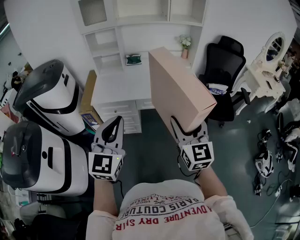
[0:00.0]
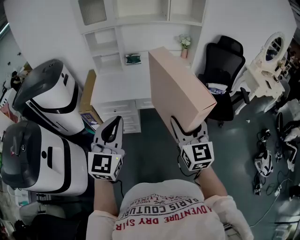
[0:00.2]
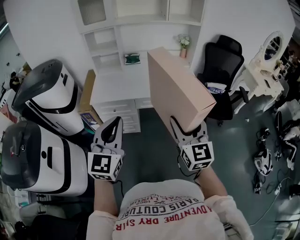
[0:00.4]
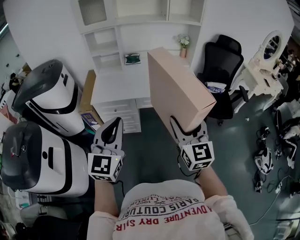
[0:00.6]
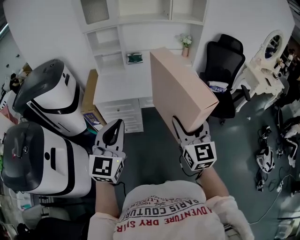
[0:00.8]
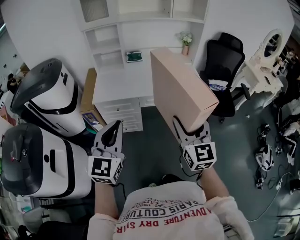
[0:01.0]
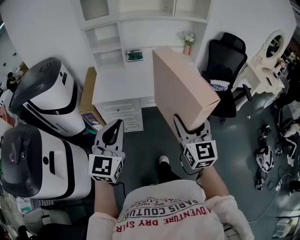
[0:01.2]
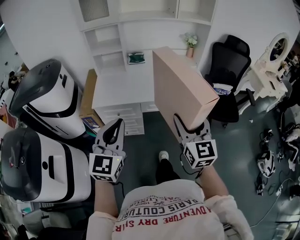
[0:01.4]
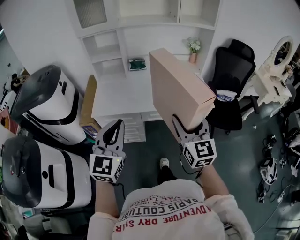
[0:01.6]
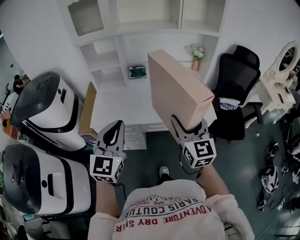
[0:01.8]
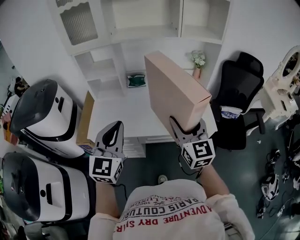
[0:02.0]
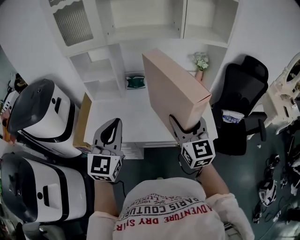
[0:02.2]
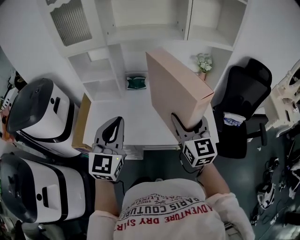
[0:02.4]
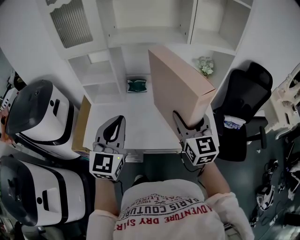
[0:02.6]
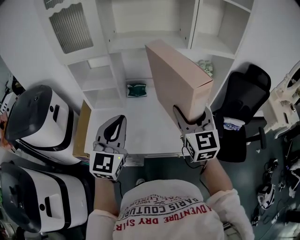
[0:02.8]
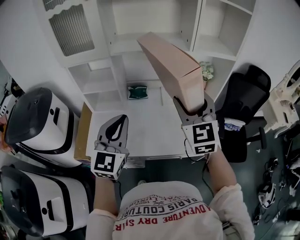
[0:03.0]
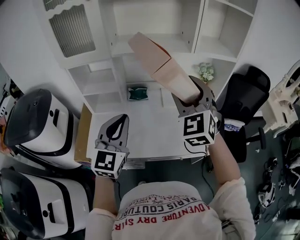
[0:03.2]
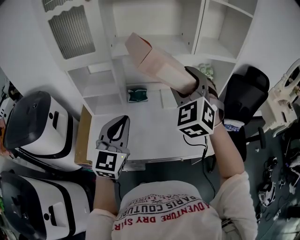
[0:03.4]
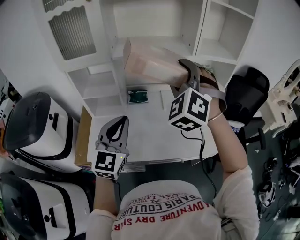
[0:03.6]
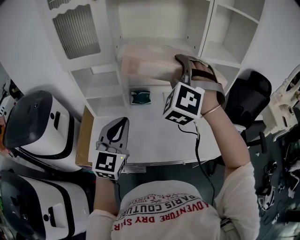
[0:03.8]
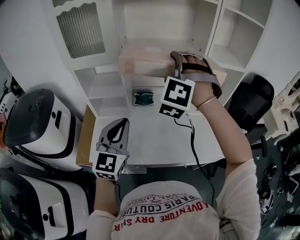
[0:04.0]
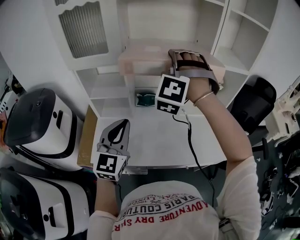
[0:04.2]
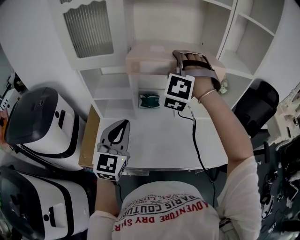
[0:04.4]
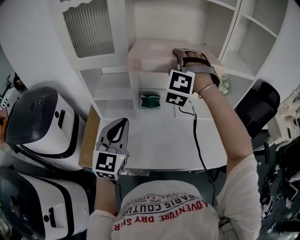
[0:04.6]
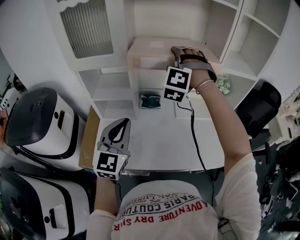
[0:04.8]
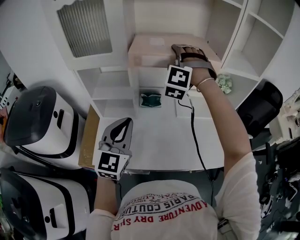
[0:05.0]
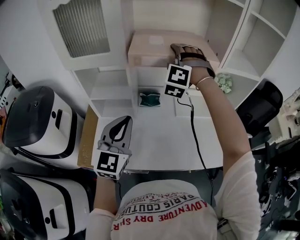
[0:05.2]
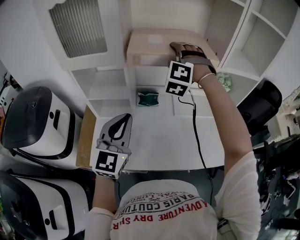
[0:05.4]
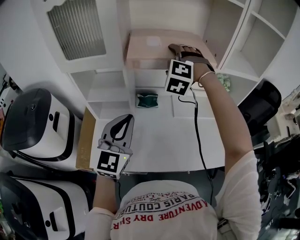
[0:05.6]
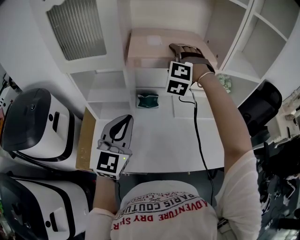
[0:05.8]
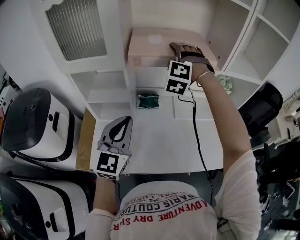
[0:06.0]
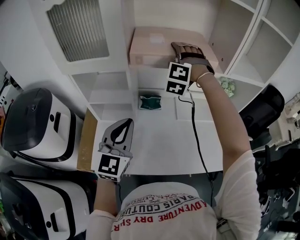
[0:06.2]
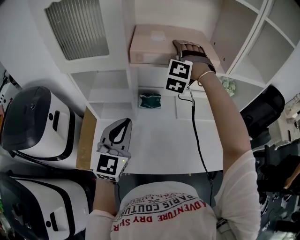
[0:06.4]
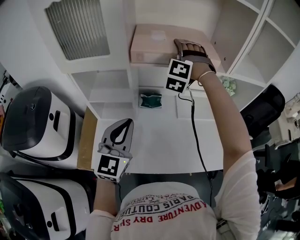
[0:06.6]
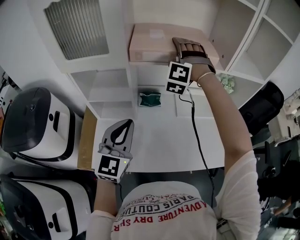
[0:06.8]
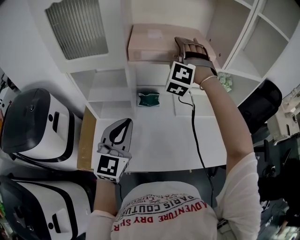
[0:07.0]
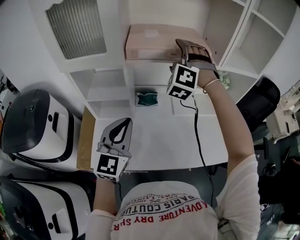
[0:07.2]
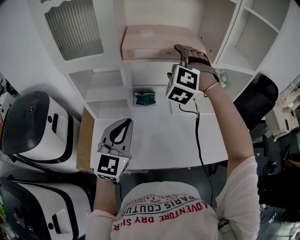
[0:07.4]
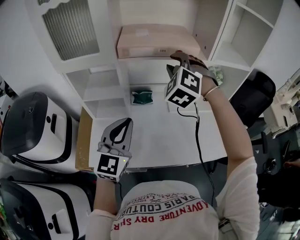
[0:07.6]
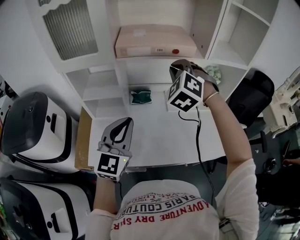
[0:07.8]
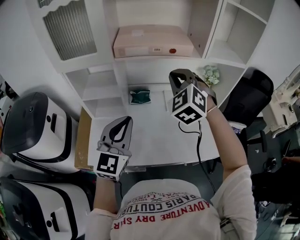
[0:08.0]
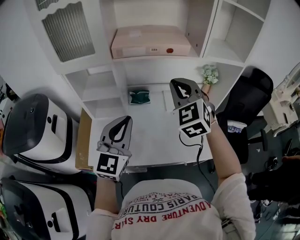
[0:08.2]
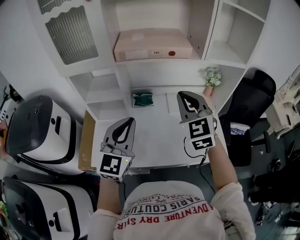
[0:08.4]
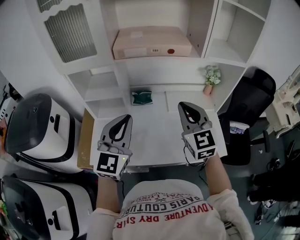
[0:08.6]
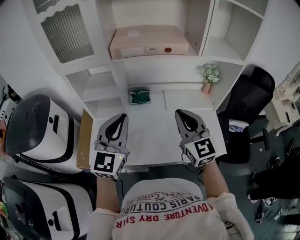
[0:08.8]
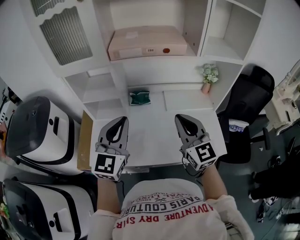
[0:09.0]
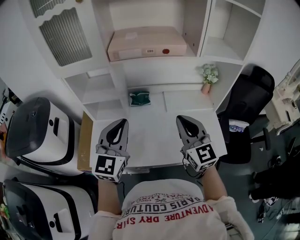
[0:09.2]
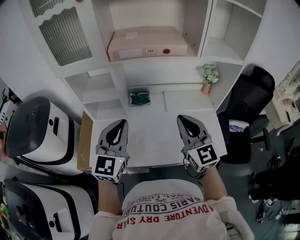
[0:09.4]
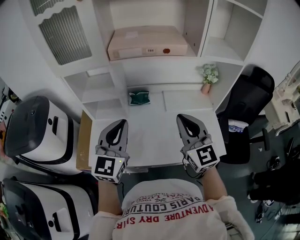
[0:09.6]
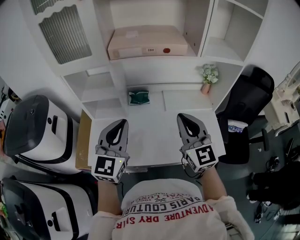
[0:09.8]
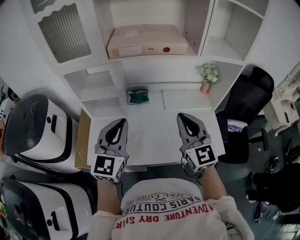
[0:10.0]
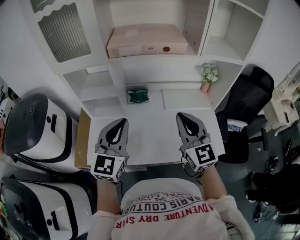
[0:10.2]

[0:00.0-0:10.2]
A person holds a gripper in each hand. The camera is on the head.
0:00.0 to 0:01.4: Both grippers move forward, roughly 5 cm.
0:01.4 to 0:03.0: Both grippers move forward, about 35 cm.
0:03.0 to 0:04.4: The right gripper travels forward and to the left by roughly 20 cm, and twists roughly 60 degrees counterclockwise, seen from behind, while the left gripper shifts roughly 10 cm to the left.
0:04.4 to 0:05.8: The right gripper moves forward and downward, approximately 10 cm, while the left gripper is displaced forward by about 5 cm.
0:05.8 to 0:07.2: The grippers move only a little.
0:07.2 to 0:08.8: The right gripper heads backward and to the right, covering about 25 cm, twists about 70 degrees clockwise, seen from behind, and closes up. The left gripper moves some 5 cm.
0:08.8 to 0:10.2: The grippers make only small movements.

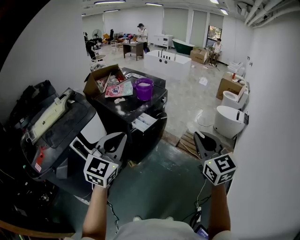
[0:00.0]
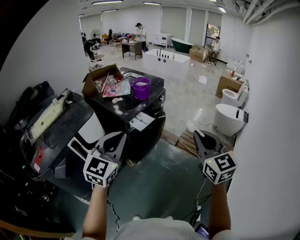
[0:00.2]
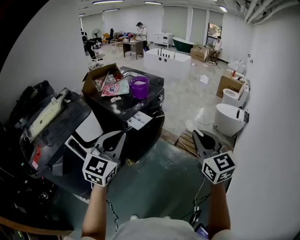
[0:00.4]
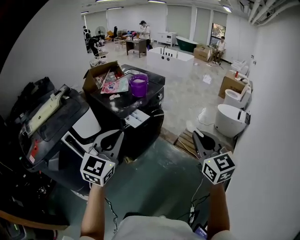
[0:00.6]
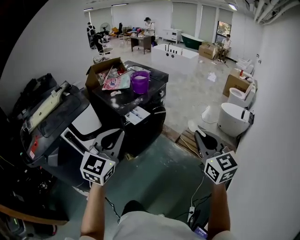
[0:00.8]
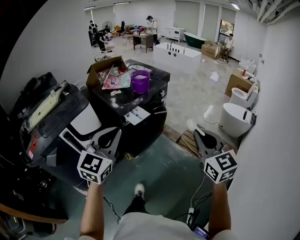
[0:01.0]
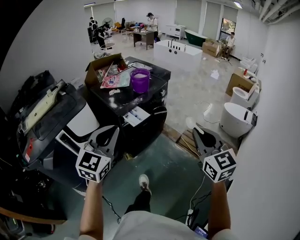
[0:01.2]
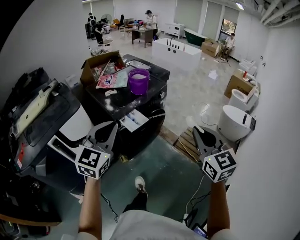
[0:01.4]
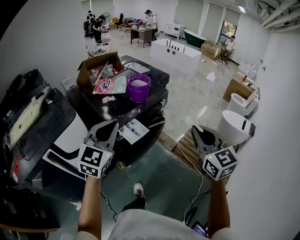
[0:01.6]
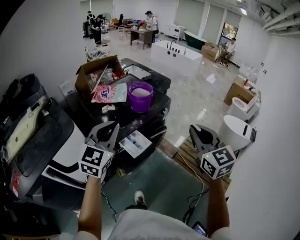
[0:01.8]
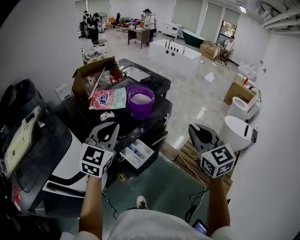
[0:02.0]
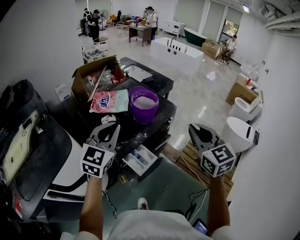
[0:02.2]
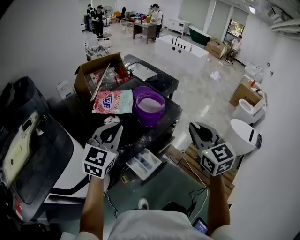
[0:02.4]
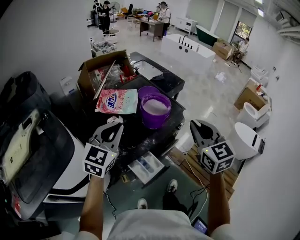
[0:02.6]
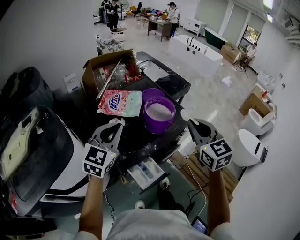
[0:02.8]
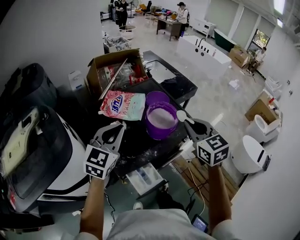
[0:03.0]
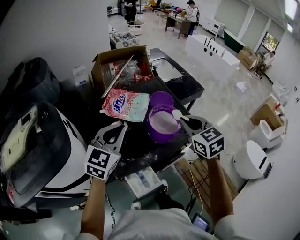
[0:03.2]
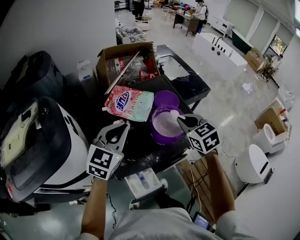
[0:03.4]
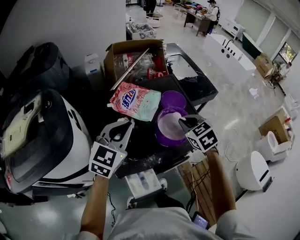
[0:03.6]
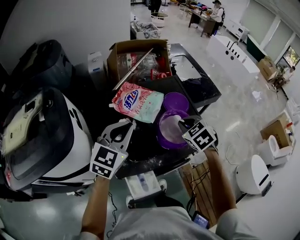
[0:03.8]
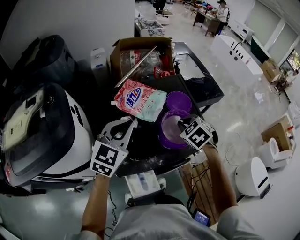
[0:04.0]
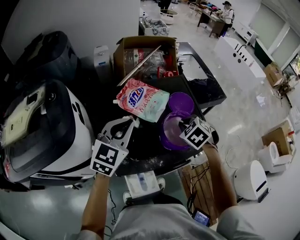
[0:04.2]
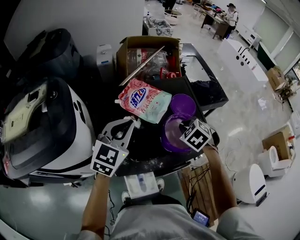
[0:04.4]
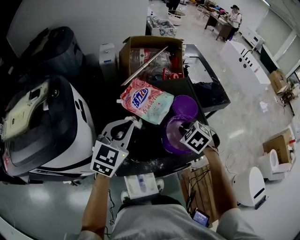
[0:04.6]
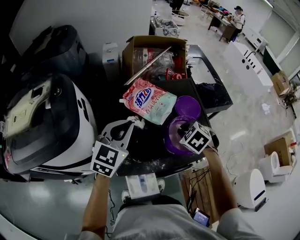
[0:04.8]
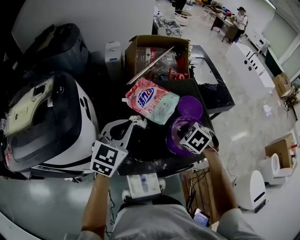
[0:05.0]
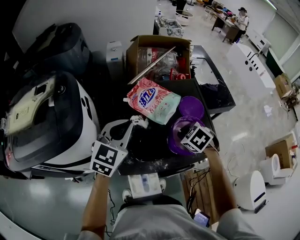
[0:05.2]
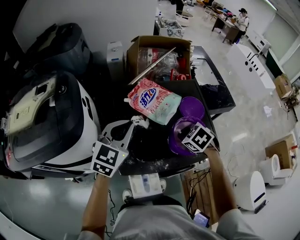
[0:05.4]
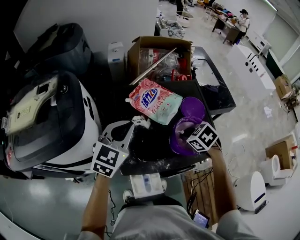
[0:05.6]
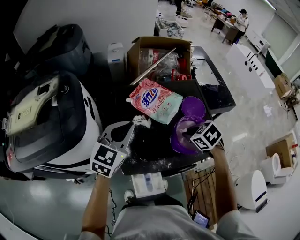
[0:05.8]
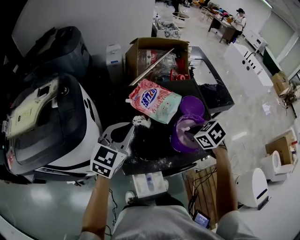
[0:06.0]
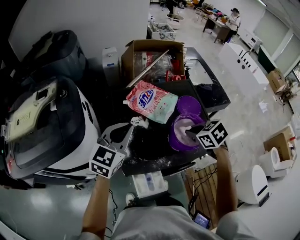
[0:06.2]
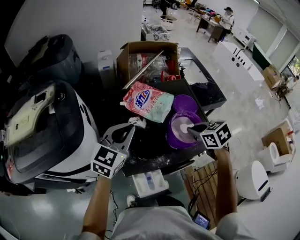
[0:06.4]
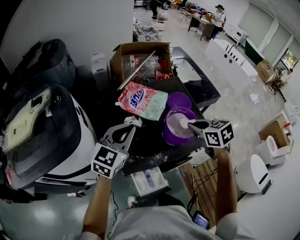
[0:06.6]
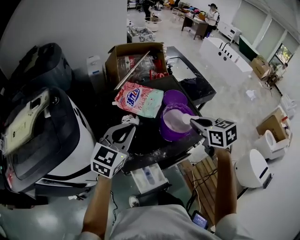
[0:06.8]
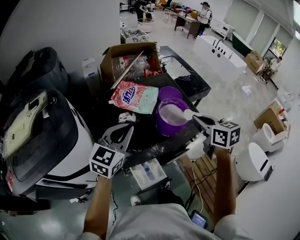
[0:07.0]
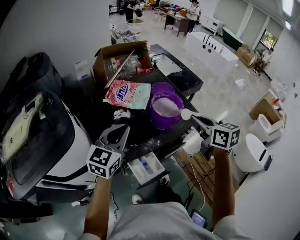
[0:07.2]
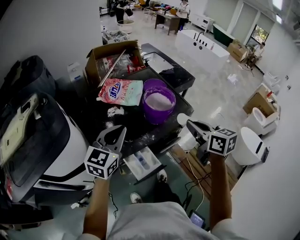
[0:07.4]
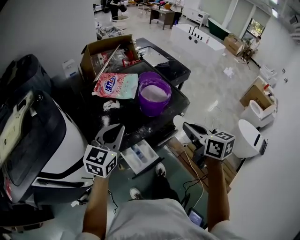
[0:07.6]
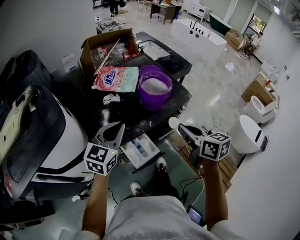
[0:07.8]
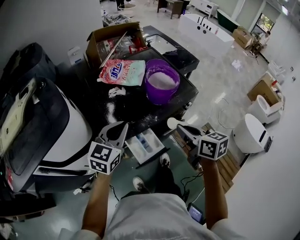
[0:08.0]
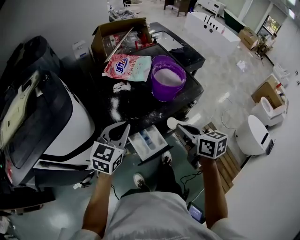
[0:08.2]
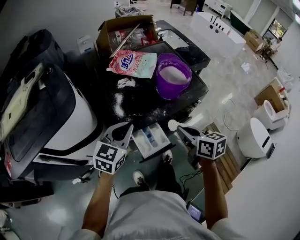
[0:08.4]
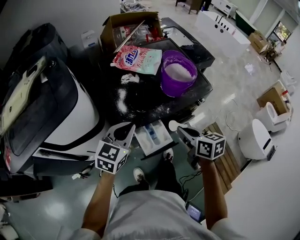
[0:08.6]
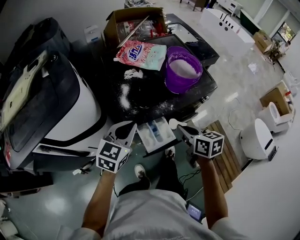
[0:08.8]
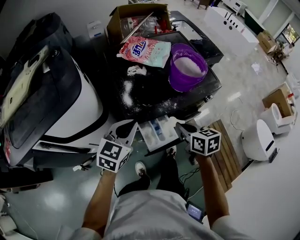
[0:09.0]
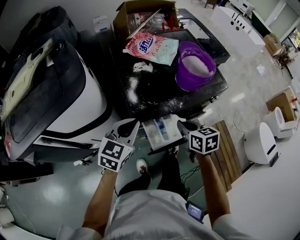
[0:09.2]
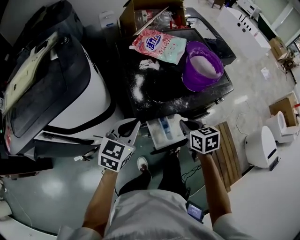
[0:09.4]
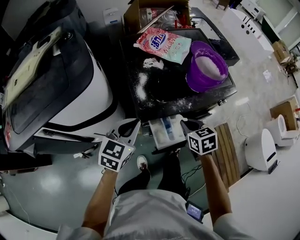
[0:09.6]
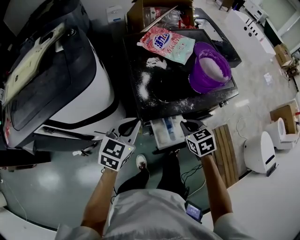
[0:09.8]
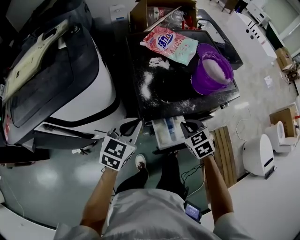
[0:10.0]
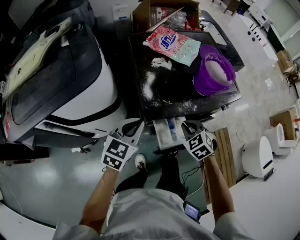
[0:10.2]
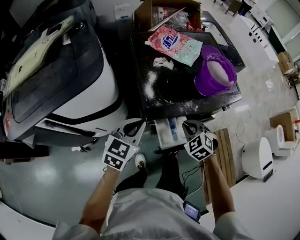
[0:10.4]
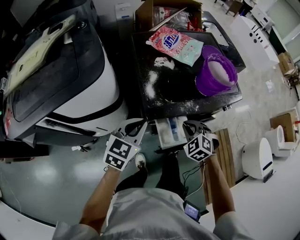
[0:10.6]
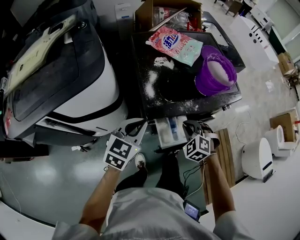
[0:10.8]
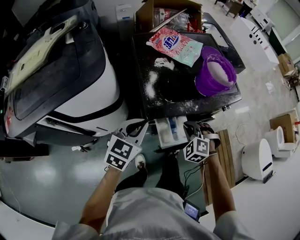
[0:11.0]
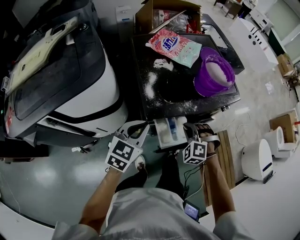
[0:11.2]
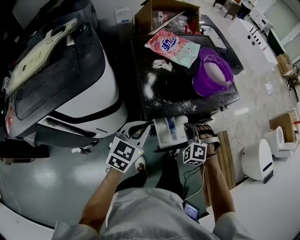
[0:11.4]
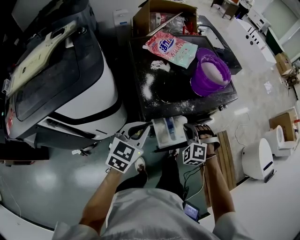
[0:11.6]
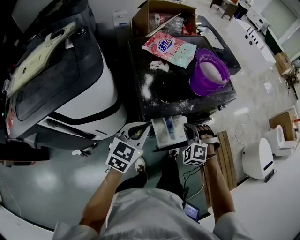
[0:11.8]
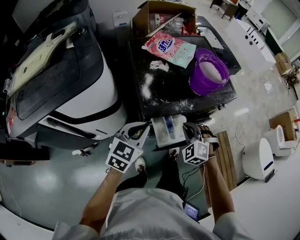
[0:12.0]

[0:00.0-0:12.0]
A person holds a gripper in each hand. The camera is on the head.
0:00.0 to 0:01.6: The grippers both shift forward by some 25 cm.
0:01.6 to 0:03.0: Both grippers move forward, some 40 cm.
0:03.0 to 0:04.4: The right gripper goes about 20 cm downward and forward, and tips its fingers downward by approximately 40 degrees; the left gripper travels forward by approximately 5 cm.
0:04.4 to 0:06.0: The left gripper shifts some 5 cm to the left. The right gripper rotates some 20 degrees.
0:06.0 to 0:07.6: The left gripper ends up roughly 15 cm from where it was. The right gripper moves about 25 cm, and angles its fingers upward, by some 40 degrees.
0:07.6 to 0:09.0: The left gripper heads downward and backward, covering about 10 cm. Meanwhile the right gripper travels downward and to the left by about 20 cm, and turns by some 20 degrees.
0:09.0 to 0:10.4: The right gripper shifts roughly 5 cm downward, and twists approximately 60 degrees counterclockwise, seen from behind. Meanwhile the left gripper ends up approximately 5 cm from where it was.
0:10.4 to 0:12.0: The right gripper rotates roughly 20 degrees.

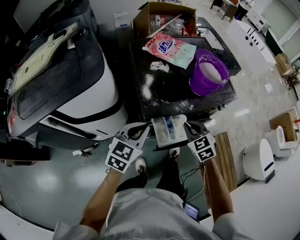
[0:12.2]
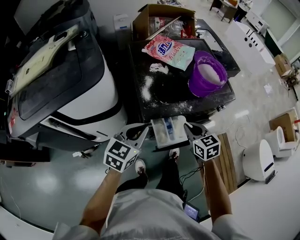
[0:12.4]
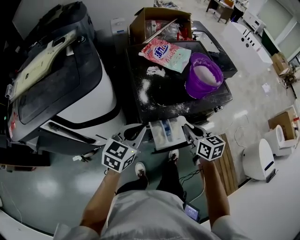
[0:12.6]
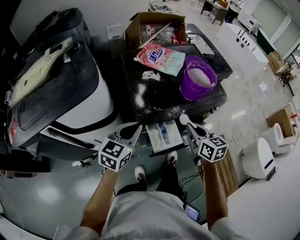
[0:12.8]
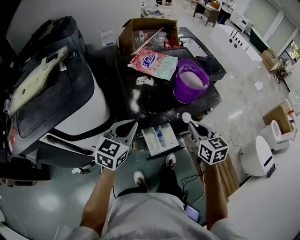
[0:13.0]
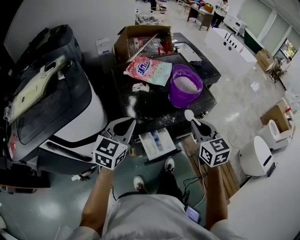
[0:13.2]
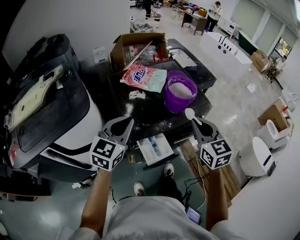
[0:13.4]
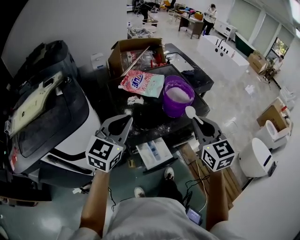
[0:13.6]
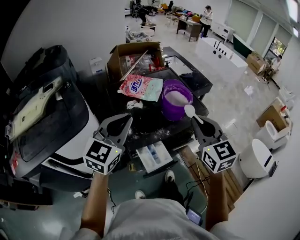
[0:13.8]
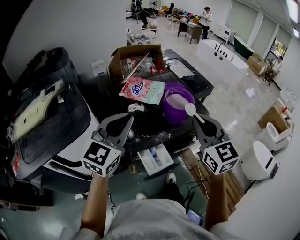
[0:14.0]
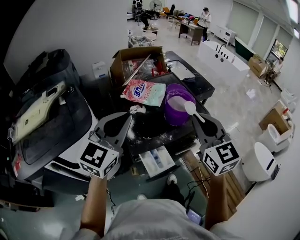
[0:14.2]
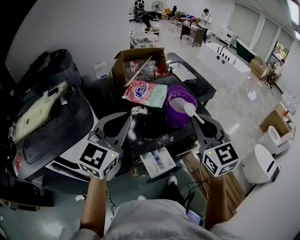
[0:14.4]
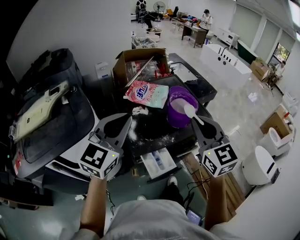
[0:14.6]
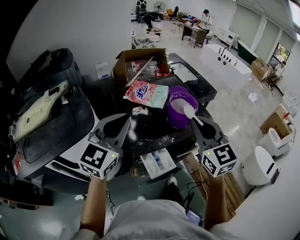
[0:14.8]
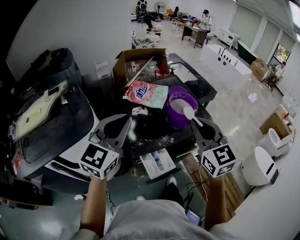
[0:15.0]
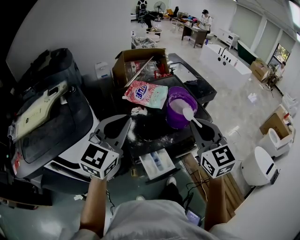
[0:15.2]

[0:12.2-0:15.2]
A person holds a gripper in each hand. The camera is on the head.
0:12.2 to 0:13.8: Both grippers travel together upward, roughly 25 cm. The left gripper swivels about 20 degrees. Meanwhile the right gripper angles its fingers upward, by some 30 degrees.
0:13.8 to 0:15.2: The grippers stay close to where they were, moving slightly.
